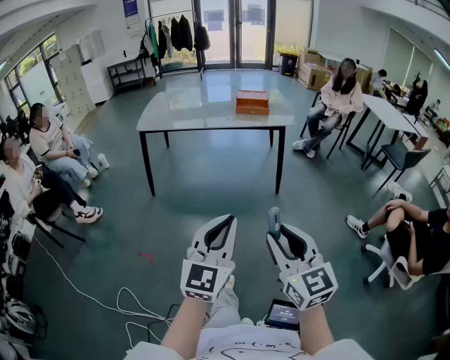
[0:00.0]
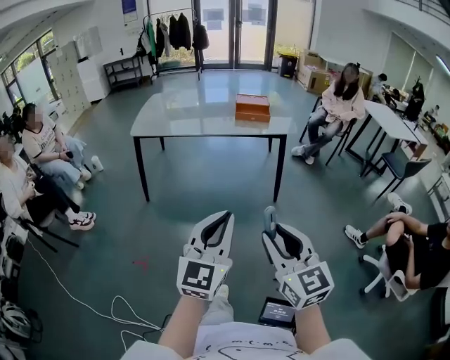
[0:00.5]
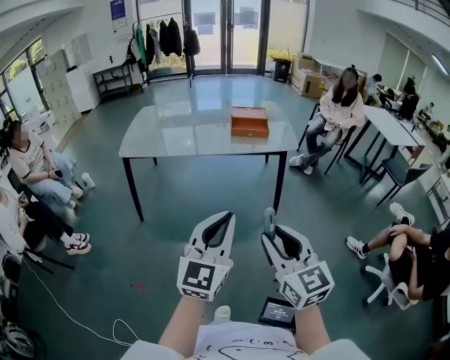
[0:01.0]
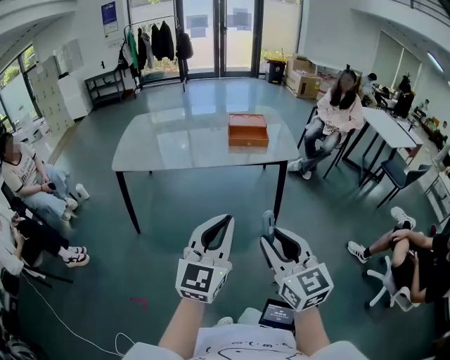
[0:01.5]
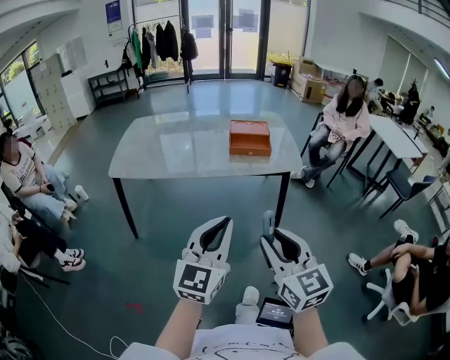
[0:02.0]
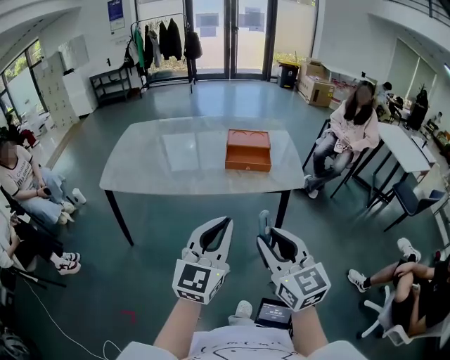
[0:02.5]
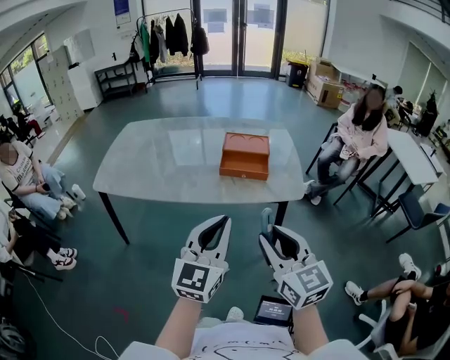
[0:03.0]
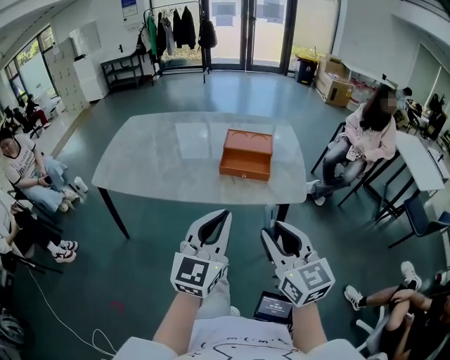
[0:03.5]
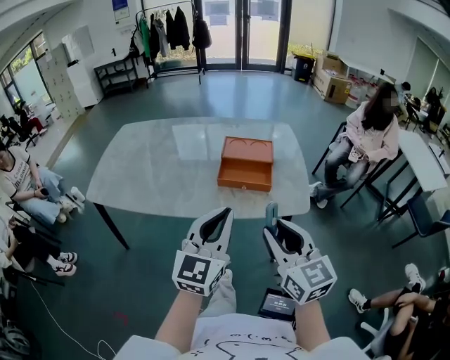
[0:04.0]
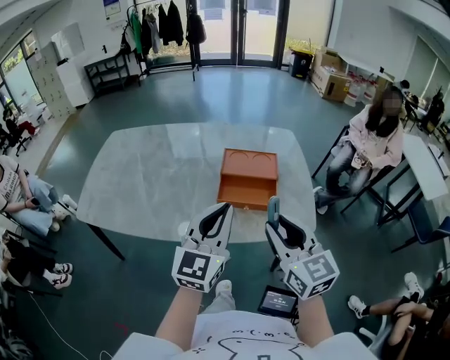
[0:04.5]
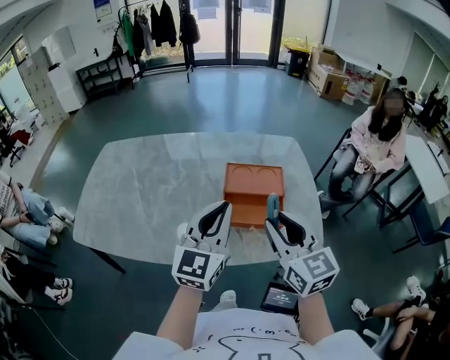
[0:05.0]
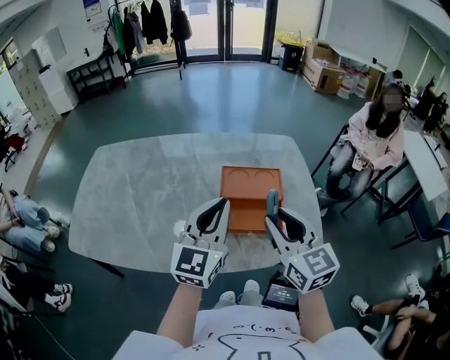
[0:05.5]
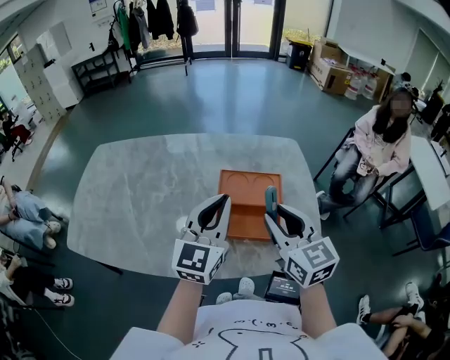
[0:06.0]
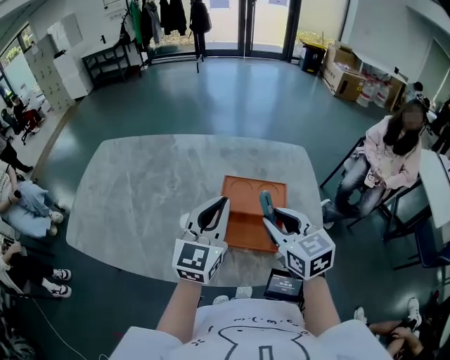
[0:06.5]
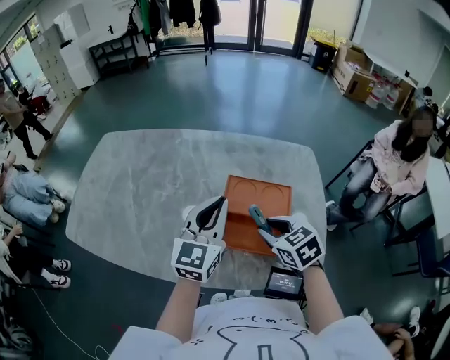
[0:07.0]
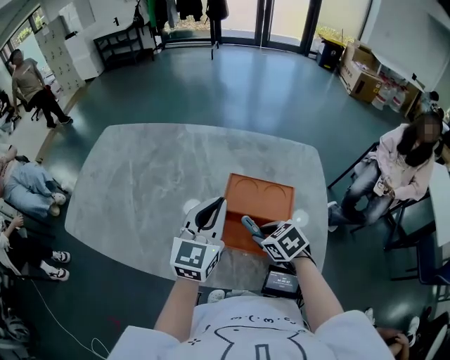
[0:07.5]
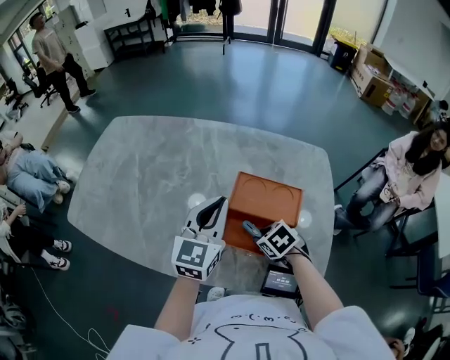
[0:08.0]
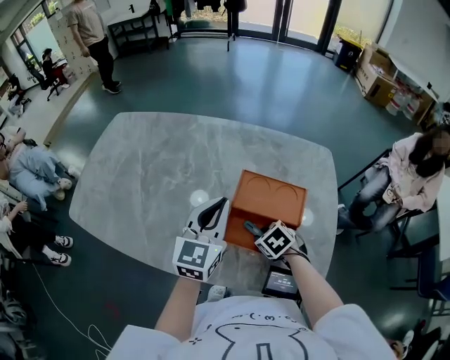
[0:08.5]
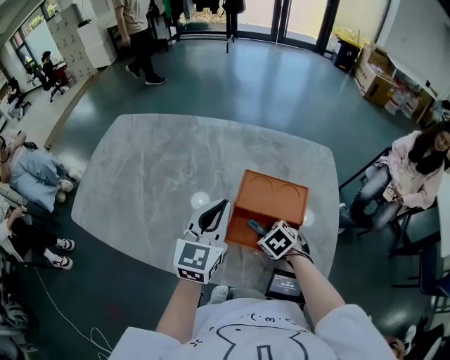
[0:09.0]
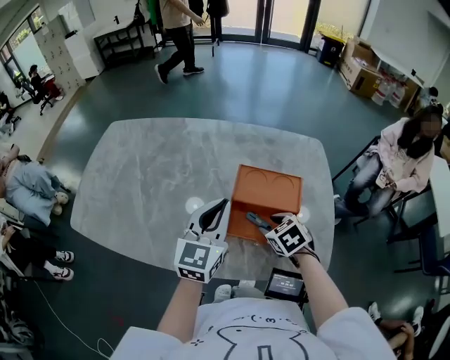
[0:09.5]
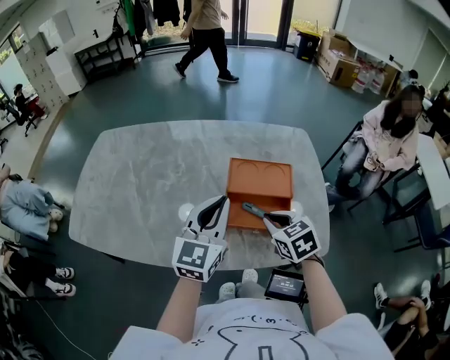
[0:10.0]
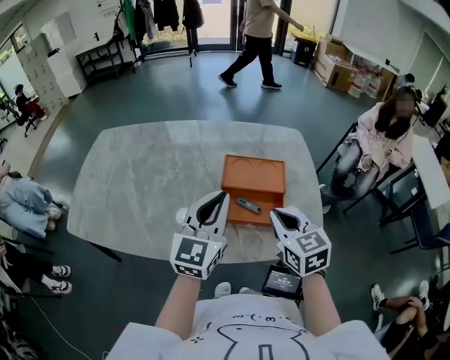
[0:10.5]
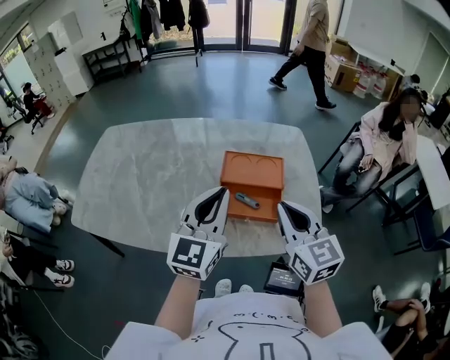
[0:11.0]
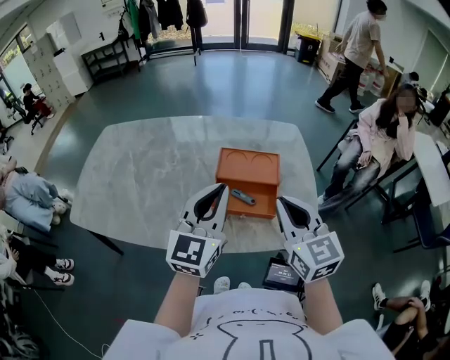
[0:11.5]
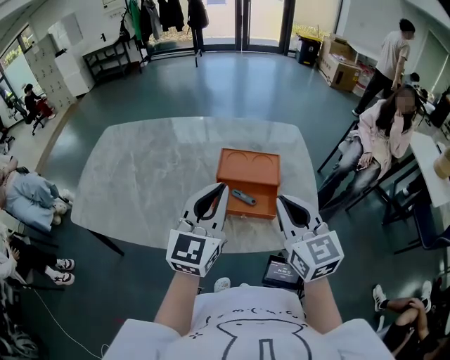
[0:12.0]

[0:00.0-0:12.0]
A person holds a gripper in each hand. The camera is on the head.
0.0 to 2.0 s: The grippers both shift forward by roughly 35 cm.
2.0 to 4.0 s: The two grippers go about 30 cm forward.
4.0 to 6.0 s: The two grippers go about 30 cm forward.
6.0 to 8.0 s: The right gripper is displaced downward by roughly 25 cm, and angles its fingers downward, by roughly 50 degrees. Meanwhile the left gripper travels downward by approximately 10 cm.
8.0 to 10.0 s: The left gripper is displaced backward by approximately 5 cm. Meanwhile the right gripper is displaced upward by approximately 10 cm, and changes its angle by about 30 degrees.
10.0 to 12.0 s: The right gripper travels upward and backward by about 15 cm, and tilts its fingers some 40 degrees upward, while the left gripper travels backward and upward by approximately 10 cm.

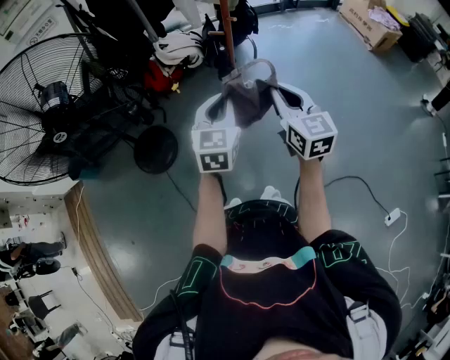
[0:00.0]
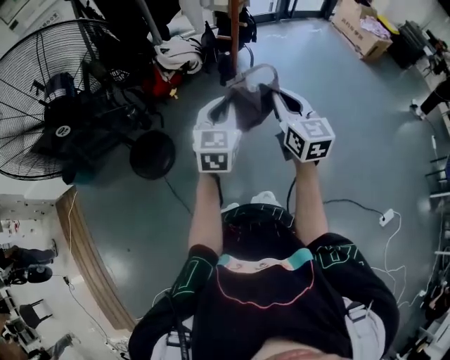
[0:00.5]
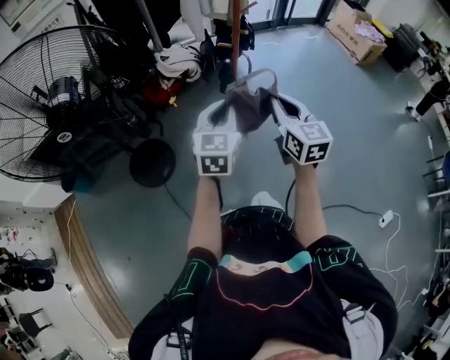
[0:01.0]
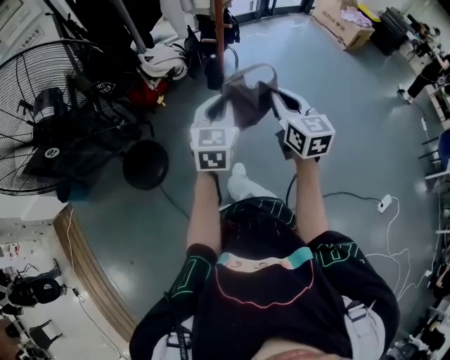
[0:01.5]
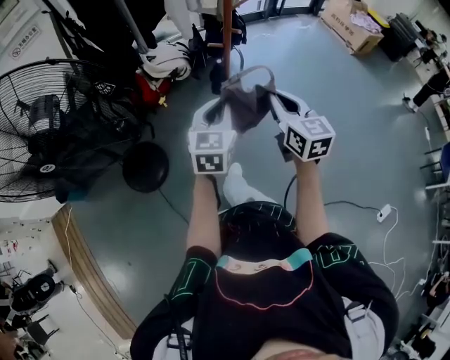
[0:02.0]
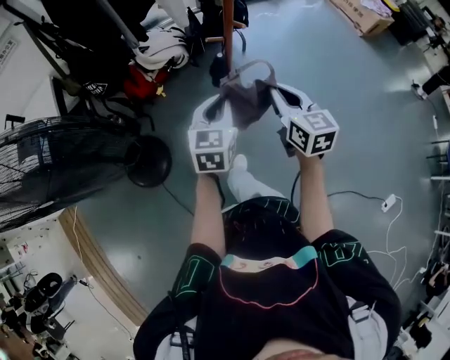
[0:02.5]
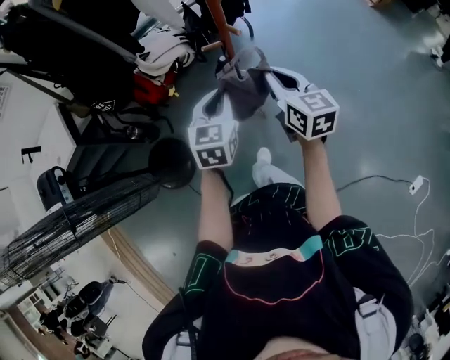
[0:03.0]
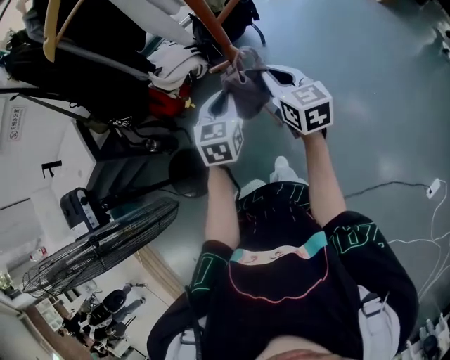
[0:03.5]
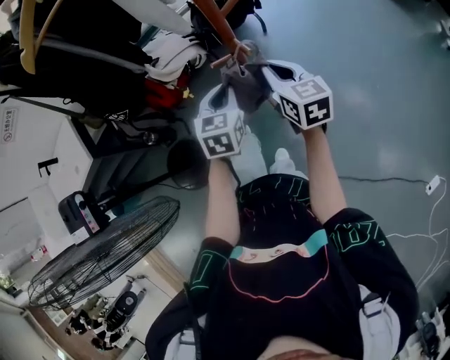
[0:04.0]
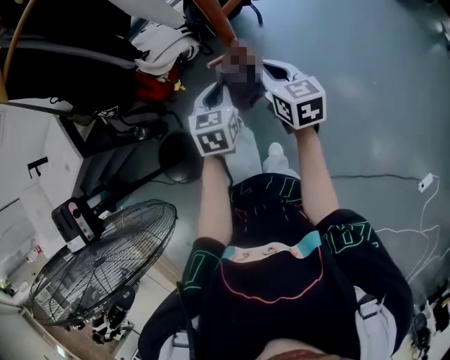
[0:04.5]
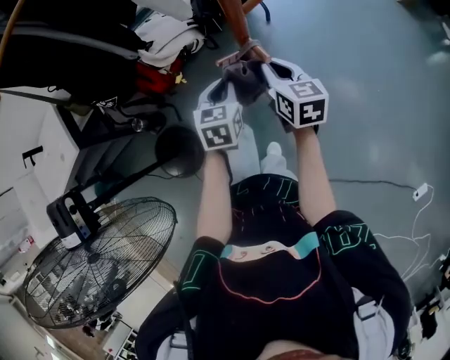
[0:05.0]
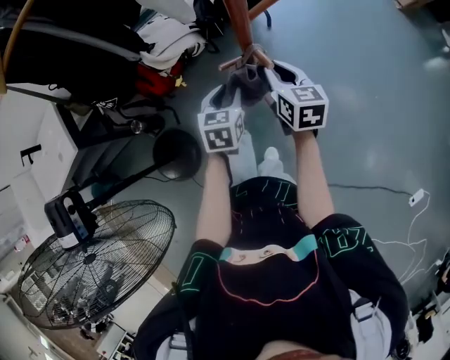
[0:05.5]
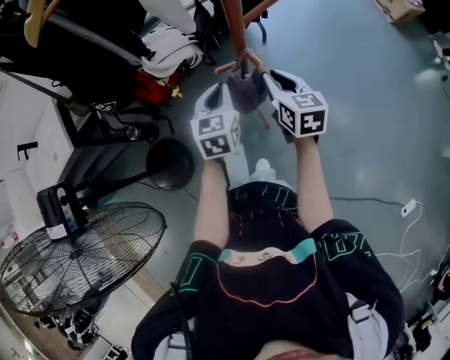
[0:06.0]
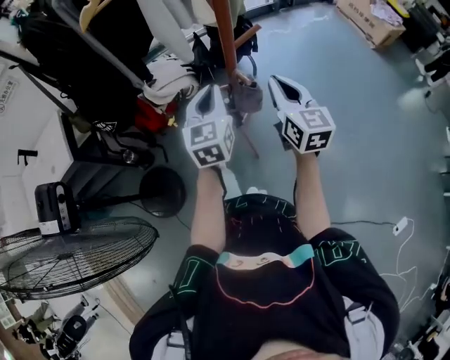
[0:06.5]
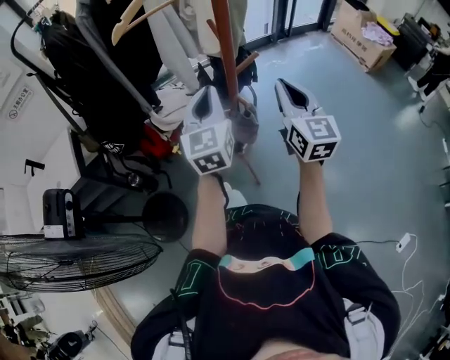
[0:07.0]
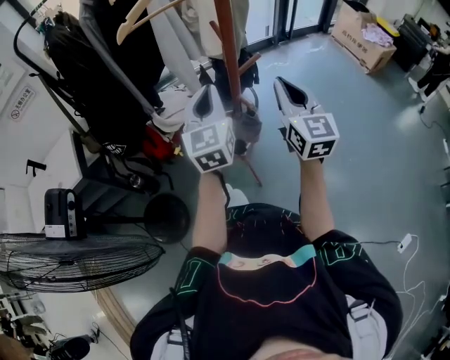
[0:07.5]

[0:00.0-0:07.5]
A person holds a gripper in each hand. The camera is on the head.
0.0 to 2.0 s: The left gripper moves forward, roughly 5 cm. The right gripper ends up about 5 cm from where it was.
2.0 to 4.0 s: The left gripper heads forward and downward, covering approximately 30 cm. The right gripper travels forward by some 30 cm.
4.0 to 5.5 s: The left gripper heads downward, covering about 5 cm, and opens its fingers; the right gripper is displaced forward and downward by roughly 10 cm.
5.5 to 7.5 s: The two grippers go approximately 25 cm upward. The left gripper tips its fingers upward by roughly 40 degrees, and closes; the right gripper rotates approximately 40 degrees.

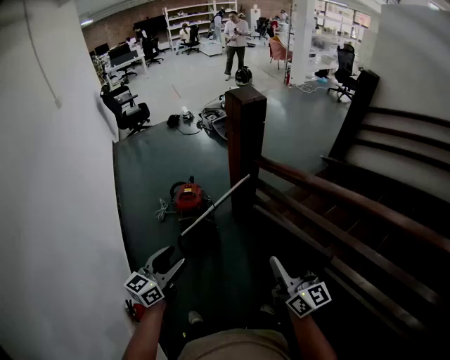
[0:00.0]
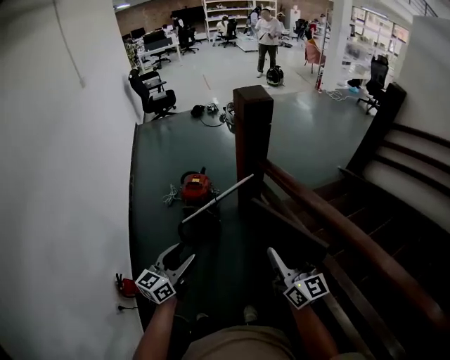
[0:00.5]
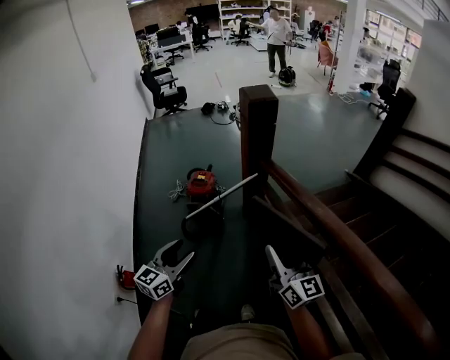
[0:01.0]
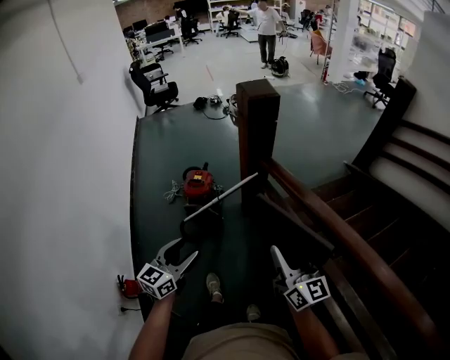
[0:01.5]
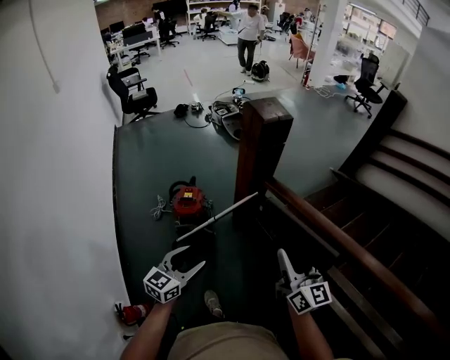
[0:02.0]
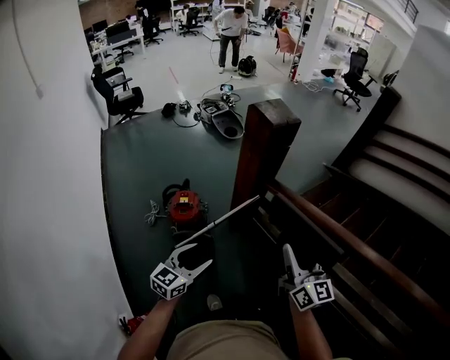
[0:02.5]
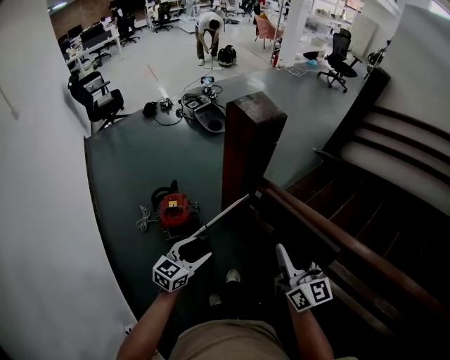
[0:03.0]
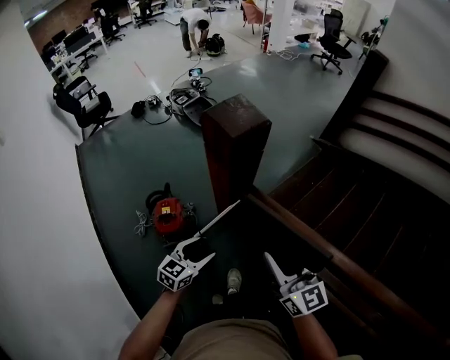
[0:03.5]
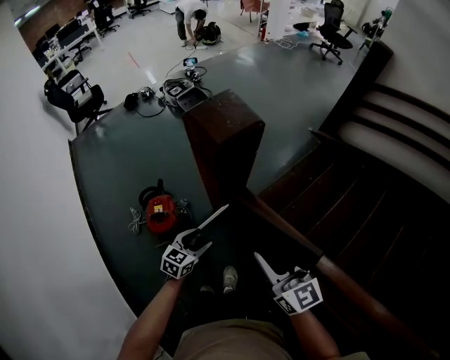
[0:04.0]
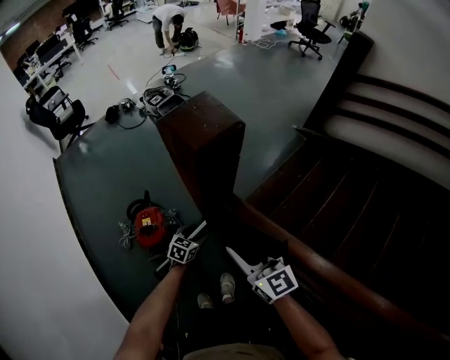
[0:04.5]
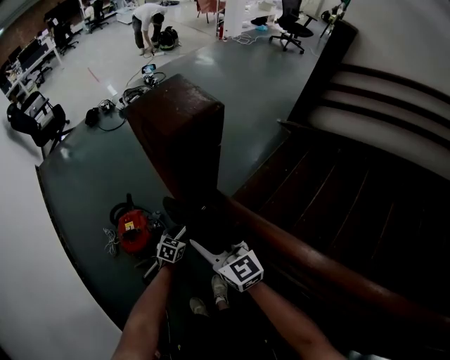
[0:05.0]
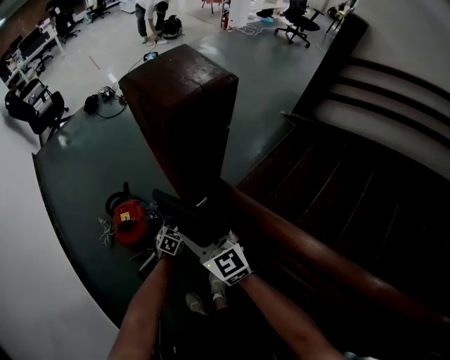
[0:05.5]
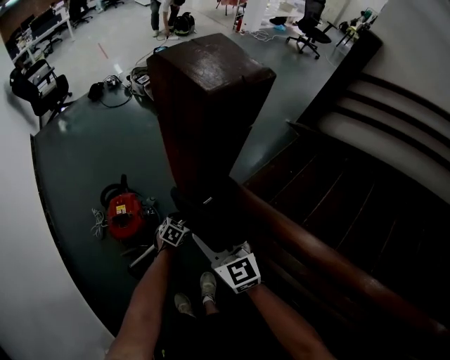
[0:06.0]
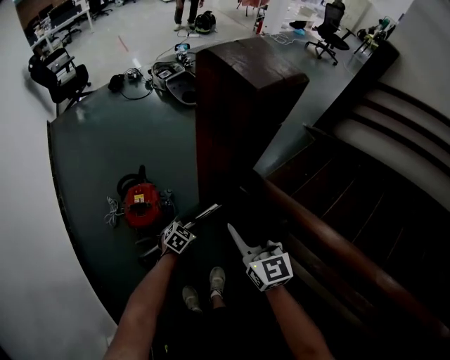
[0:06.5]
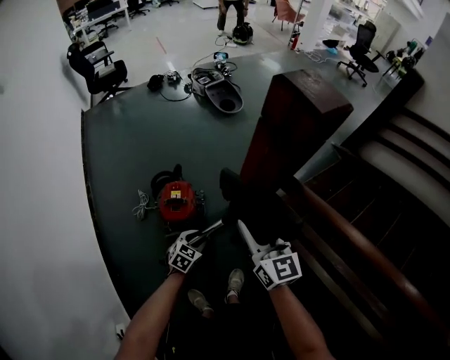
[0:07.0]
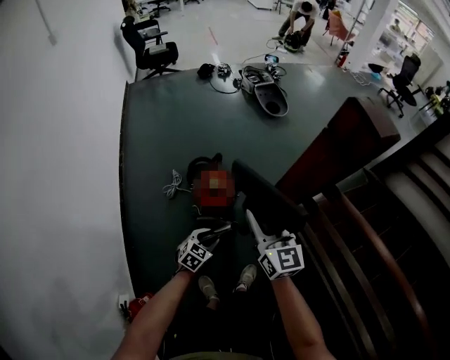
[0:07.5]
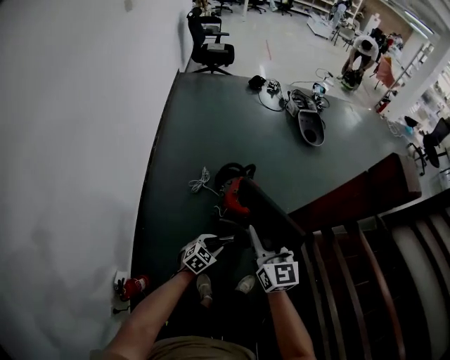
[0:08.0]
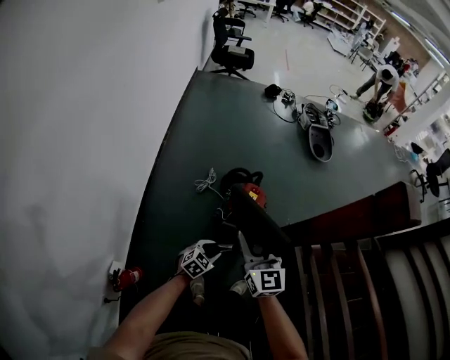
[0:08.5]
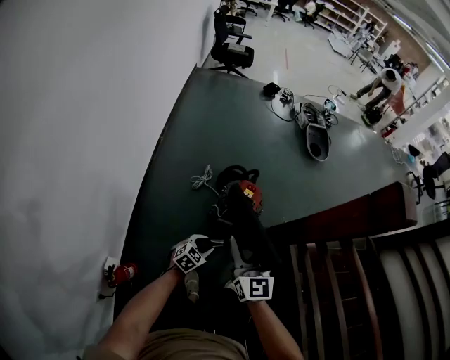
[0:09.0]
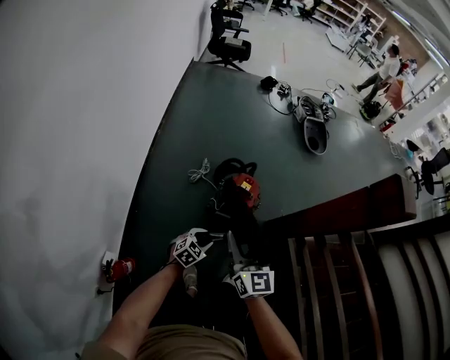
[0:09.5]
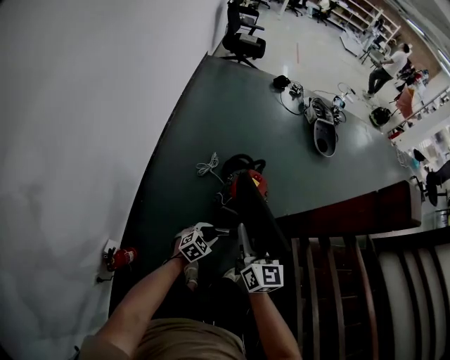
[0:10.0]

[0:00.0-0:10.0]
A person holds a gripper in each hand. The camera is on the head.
0.0 to 2.0 s: The grippers both shift forward by some 20 cm.
2.0 to 4.0 s: The right gripper goes roughly 20 cm forward, while the left gripper heads forward and downward, covering roughly 35 cm, and turns by approximately 20 degrees.
4.0 to 6.0 s: The right gripper heads downward and to the left, covering approximately 25 cm. Meanwhile the left gripper heads downward, covering some 30 cm, turns by some 20 degrees, and closes up.
6.0 to 8.0 s: The right gripper ends up roughly 40 cm from where it was, and changes its angle by approximately 20 degrees; the left gripper changes place by some 50 cm, and turns by roughly 30 degrees.
8.0 to 10.0 s: The right gripper goes approximately 10 cm to the left and backward.
